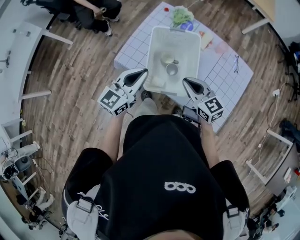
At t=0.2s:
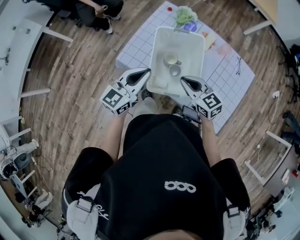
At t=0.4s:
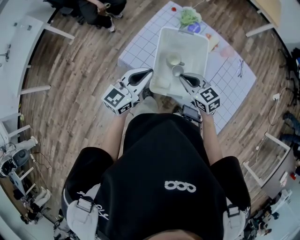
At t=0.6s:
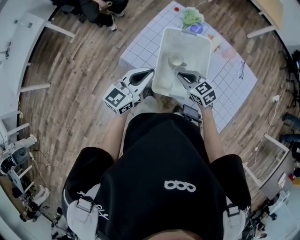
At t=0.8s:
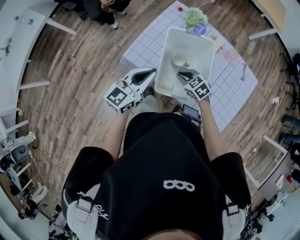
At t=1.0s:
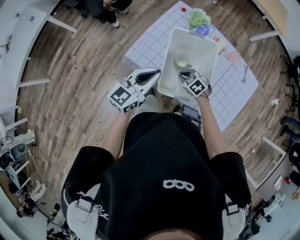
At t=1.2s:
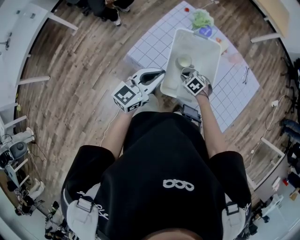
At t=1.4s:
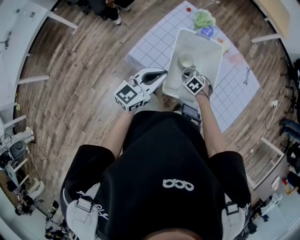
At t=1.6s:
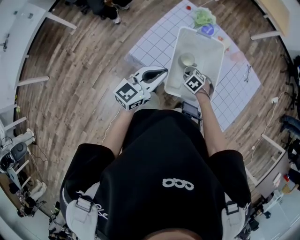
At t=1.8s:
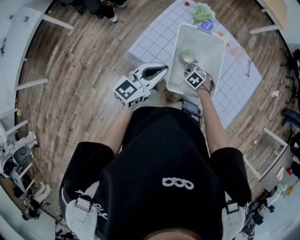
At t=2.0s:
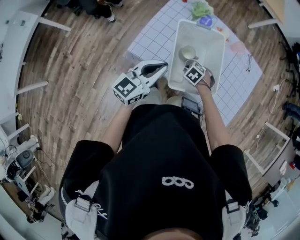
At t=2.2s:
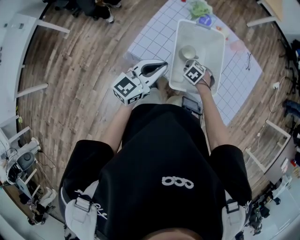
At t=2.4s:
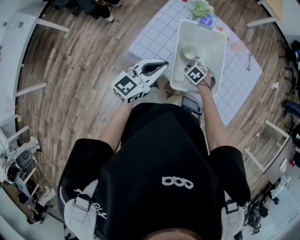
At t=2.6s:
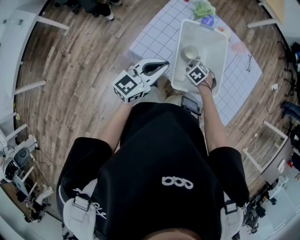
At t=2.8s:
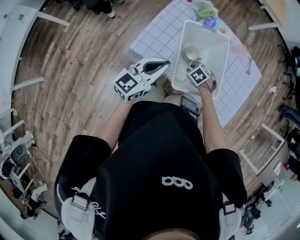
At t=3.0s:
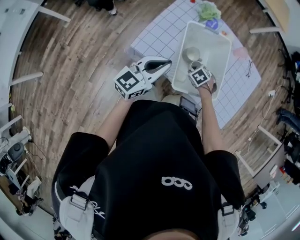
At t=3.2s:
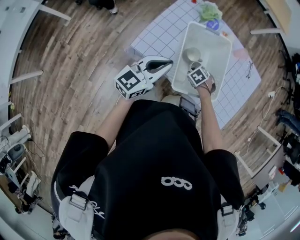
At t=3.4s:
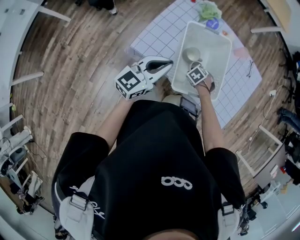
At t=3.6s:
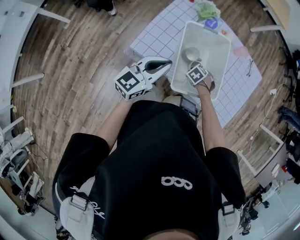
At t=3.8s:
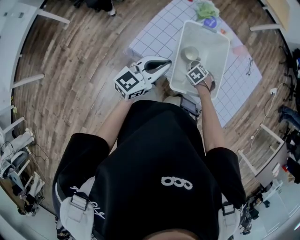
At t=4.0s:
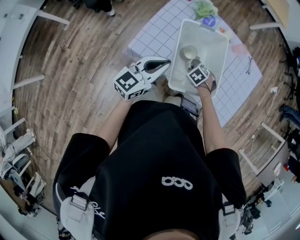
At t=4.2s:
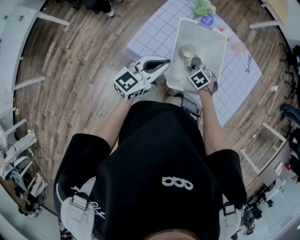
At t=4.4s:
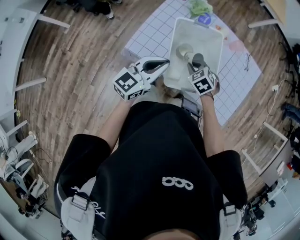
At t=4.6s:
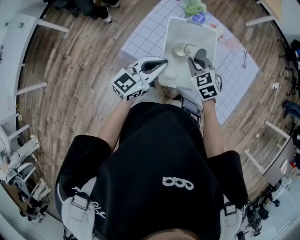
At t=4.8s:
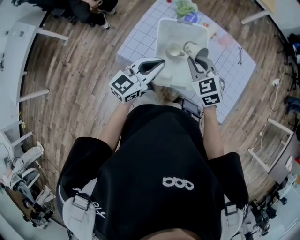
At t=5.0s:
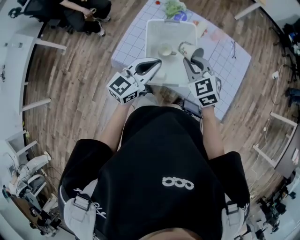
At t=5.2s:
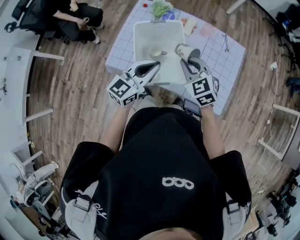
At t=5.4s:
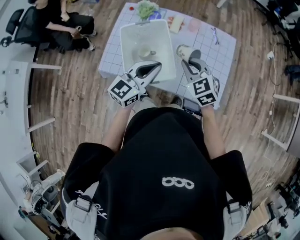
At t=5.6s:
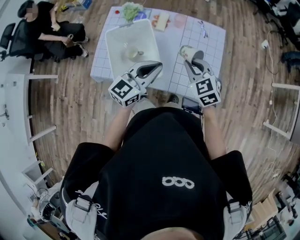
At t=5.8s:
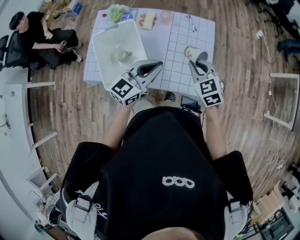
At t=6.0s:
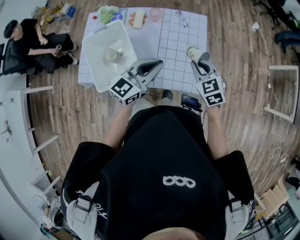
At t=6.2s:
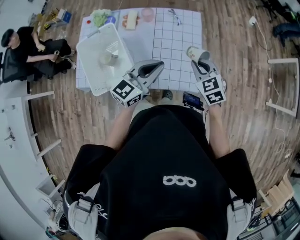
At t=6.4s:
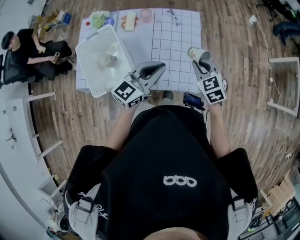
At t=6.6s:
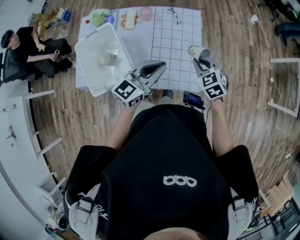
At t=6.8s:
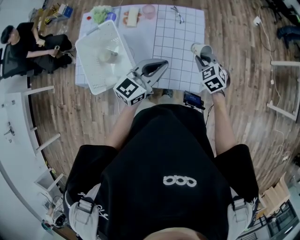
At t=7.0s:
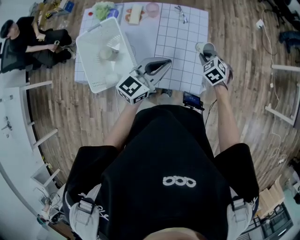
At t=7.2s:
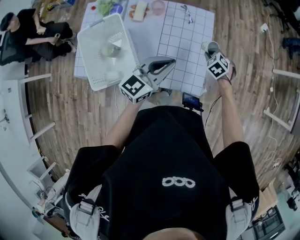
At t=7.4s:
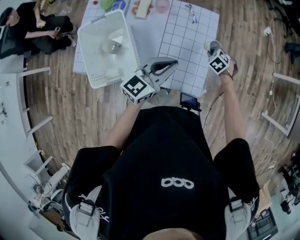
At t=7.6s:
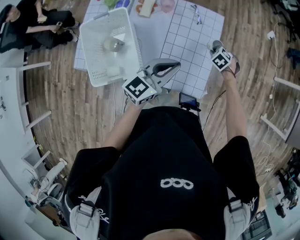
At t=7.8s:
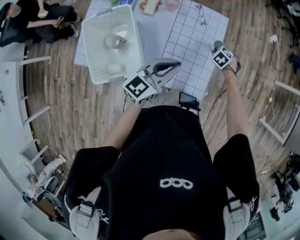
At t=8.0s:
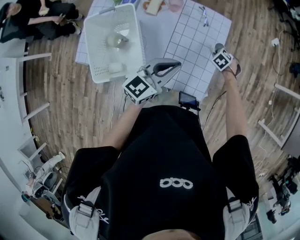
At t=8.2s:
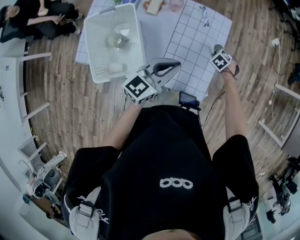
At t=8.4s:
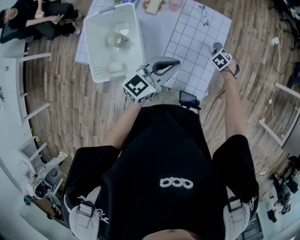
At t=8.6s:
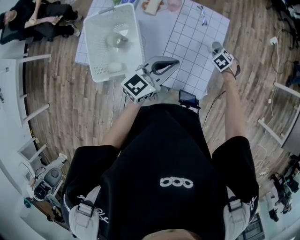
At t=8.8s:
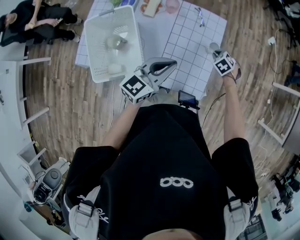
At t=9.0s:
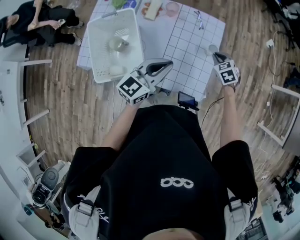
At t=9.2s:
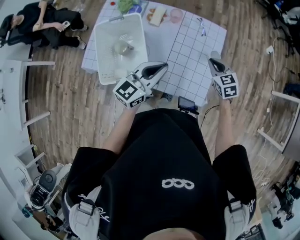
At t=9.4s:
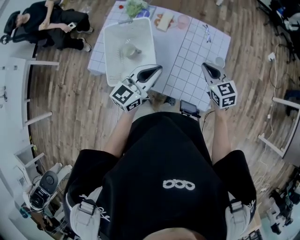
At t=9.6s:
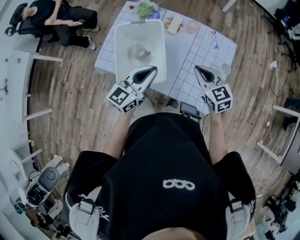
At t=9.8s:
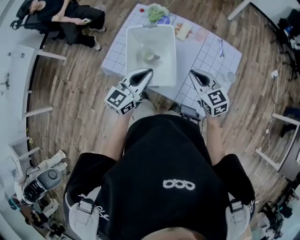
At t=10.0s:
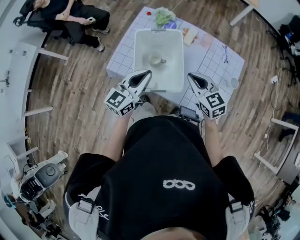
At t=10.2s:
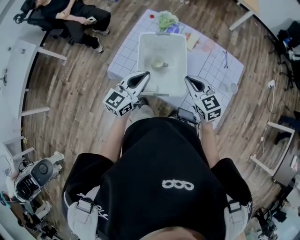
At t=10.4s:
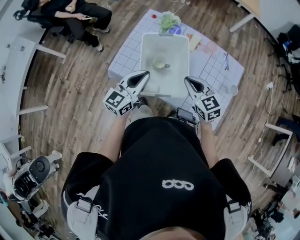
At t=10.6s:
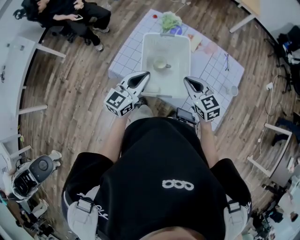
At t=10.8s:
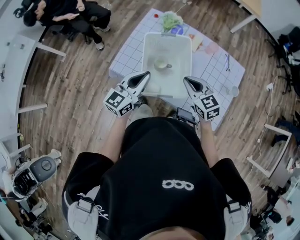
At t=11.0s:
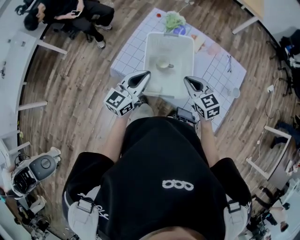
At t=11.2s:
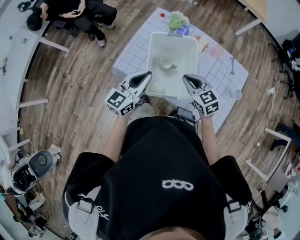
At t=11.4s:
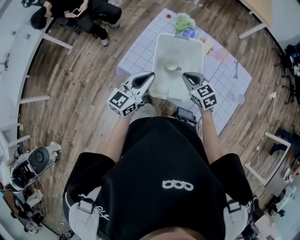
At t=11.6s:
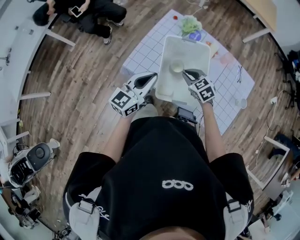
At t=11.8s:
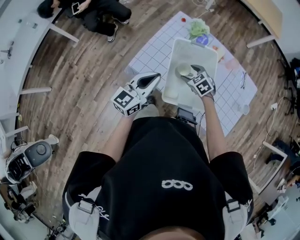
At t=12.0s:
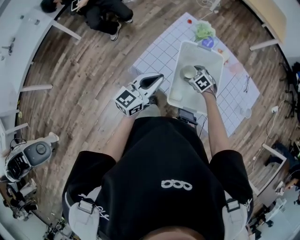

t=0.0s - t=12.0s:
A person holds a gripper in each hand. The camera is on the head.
t=0.0s - t=1.6s: The left gripper changes place by roughly 5 cm. Meanwhile the right gripper shifts some 25 cm downward, and tilts its fingers about 60 degrees downward.
t=1.6s - t=3.0s: There are only small adjustments of the grippers.
t=3.0s - t=4.4s: The right gripper travels upward by roughly 10 cm, and turns by roughly 20 degrees.
t=4.4s - t=6.0s: The right gripper shifts by some 40 cm, and rotates some 40 degrees; the left gripper changes place by about 40 cm, and changes its angle by some 20 degrees.
t=6.0s - t=7.6s: The left gripper ends up roughly 10 cm from where it was, while the right gripper goes about 25 cm downward, and points its fingers roughly 40 degrees further downward.
t=7.6s - t=9.0s: The right gripper goes about 10 cm upward, and changes its angle by some 20 degrees.
t=9.0s - t=10.4s: The left gripper shifts by roughly 35 cm, and swivels approximately 20 degrees. The right gripper shifts by roughly 40 cm, and turns by some 40 degrees.
t=10.4s - t=12.0s: The right gripper shifts about 30 cm downward, forward and to the left, angles its fingers downward, by about 40 degrees, and opens up. The left gripper goes about 10 cm to the left.

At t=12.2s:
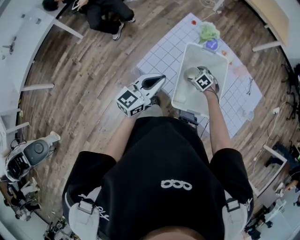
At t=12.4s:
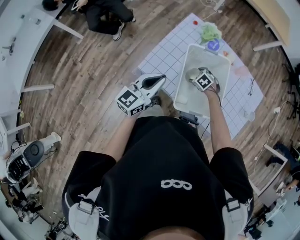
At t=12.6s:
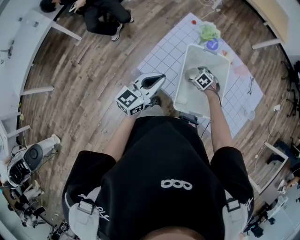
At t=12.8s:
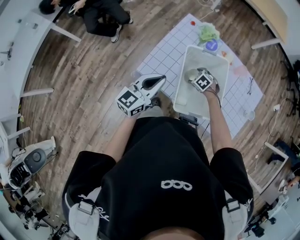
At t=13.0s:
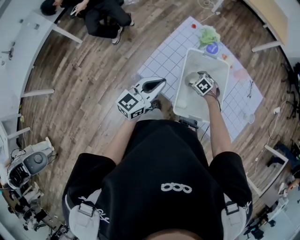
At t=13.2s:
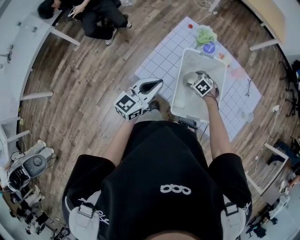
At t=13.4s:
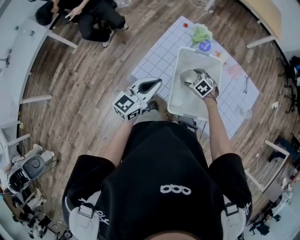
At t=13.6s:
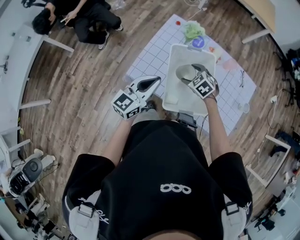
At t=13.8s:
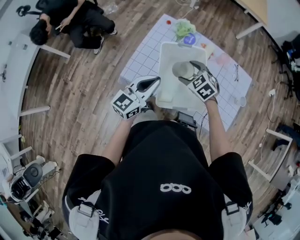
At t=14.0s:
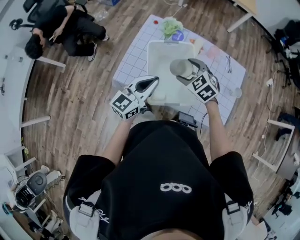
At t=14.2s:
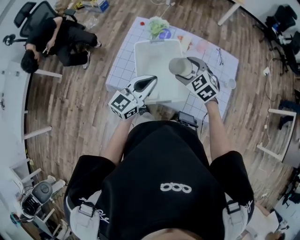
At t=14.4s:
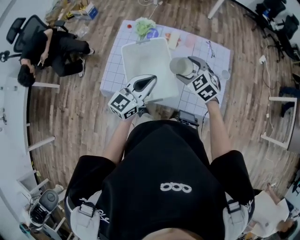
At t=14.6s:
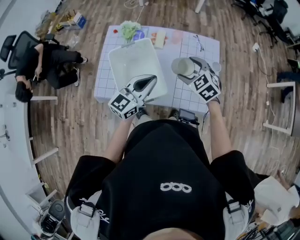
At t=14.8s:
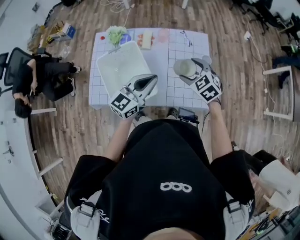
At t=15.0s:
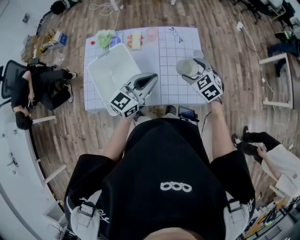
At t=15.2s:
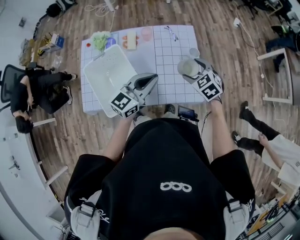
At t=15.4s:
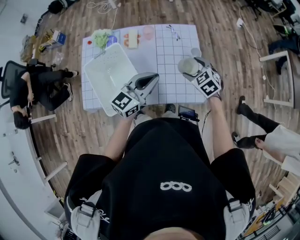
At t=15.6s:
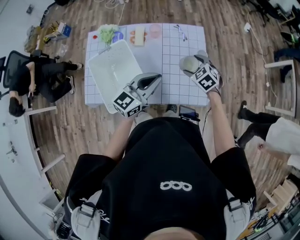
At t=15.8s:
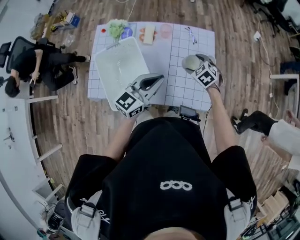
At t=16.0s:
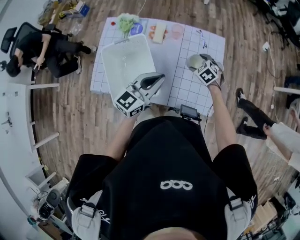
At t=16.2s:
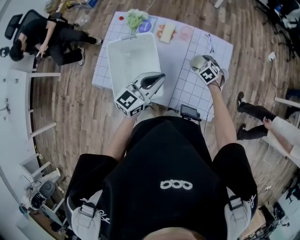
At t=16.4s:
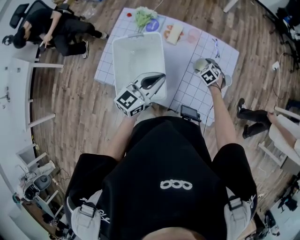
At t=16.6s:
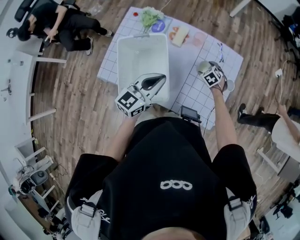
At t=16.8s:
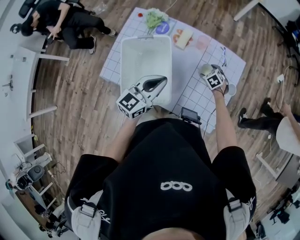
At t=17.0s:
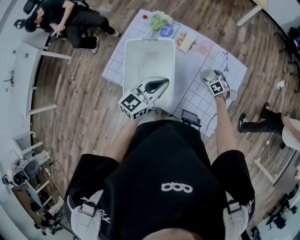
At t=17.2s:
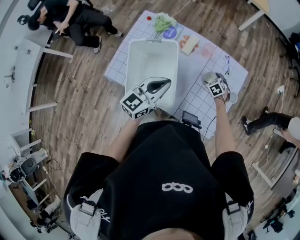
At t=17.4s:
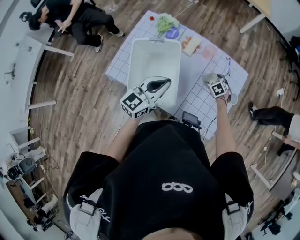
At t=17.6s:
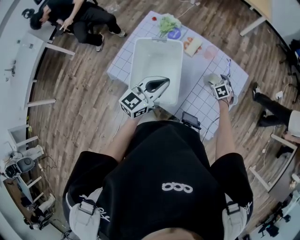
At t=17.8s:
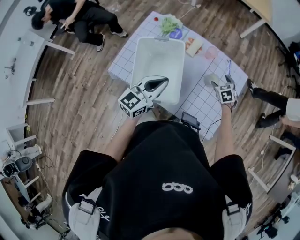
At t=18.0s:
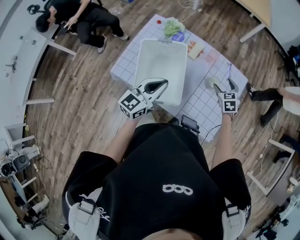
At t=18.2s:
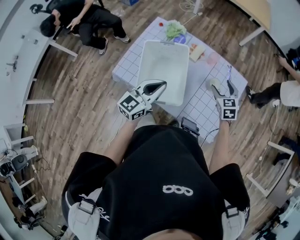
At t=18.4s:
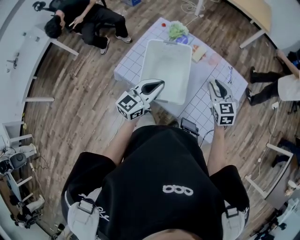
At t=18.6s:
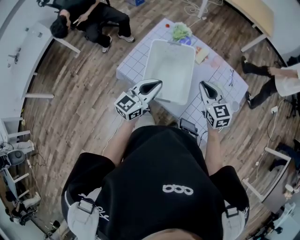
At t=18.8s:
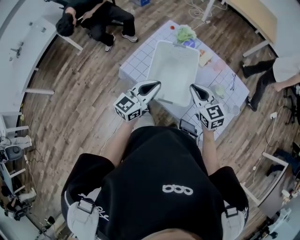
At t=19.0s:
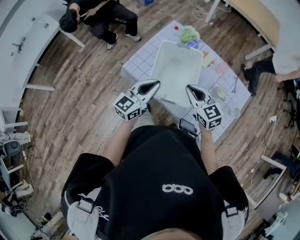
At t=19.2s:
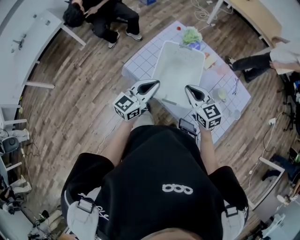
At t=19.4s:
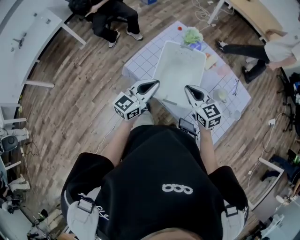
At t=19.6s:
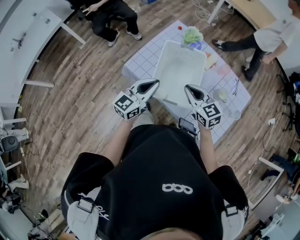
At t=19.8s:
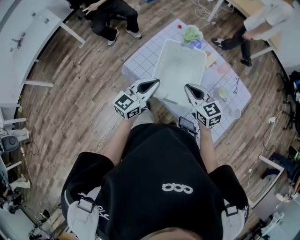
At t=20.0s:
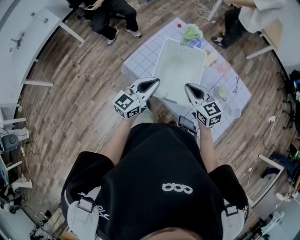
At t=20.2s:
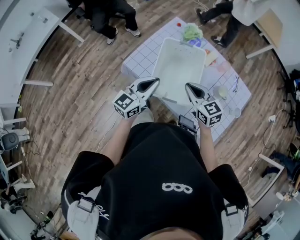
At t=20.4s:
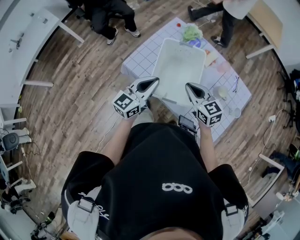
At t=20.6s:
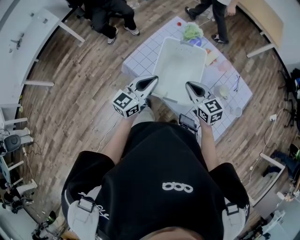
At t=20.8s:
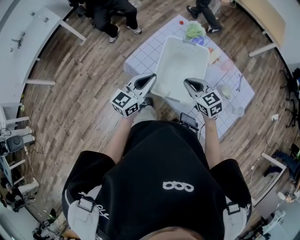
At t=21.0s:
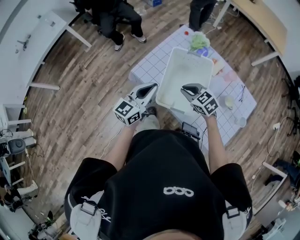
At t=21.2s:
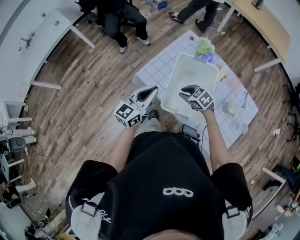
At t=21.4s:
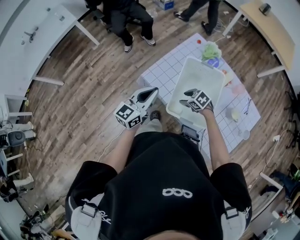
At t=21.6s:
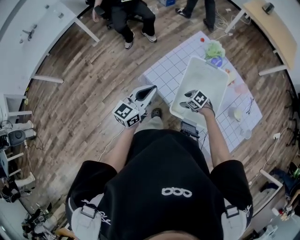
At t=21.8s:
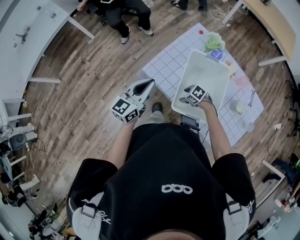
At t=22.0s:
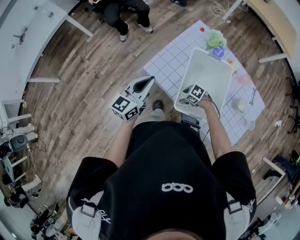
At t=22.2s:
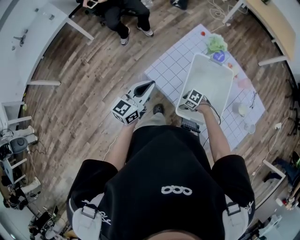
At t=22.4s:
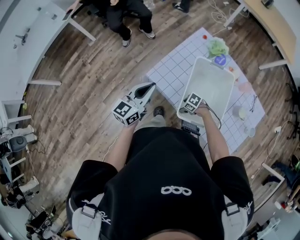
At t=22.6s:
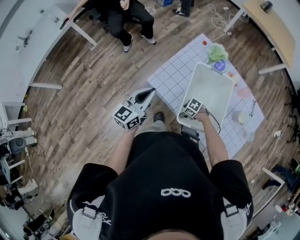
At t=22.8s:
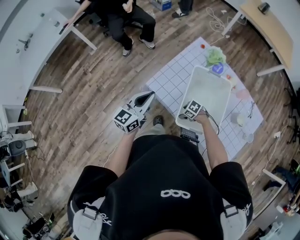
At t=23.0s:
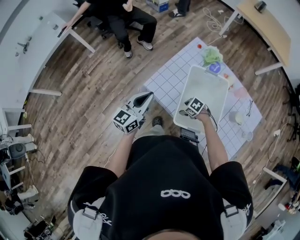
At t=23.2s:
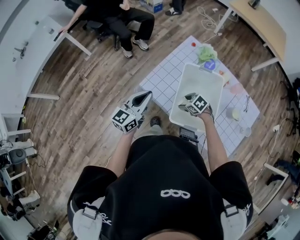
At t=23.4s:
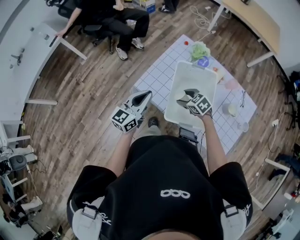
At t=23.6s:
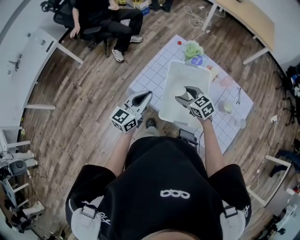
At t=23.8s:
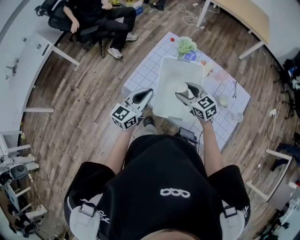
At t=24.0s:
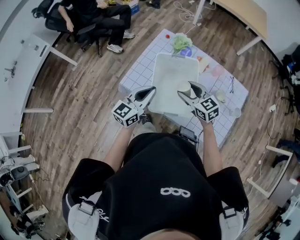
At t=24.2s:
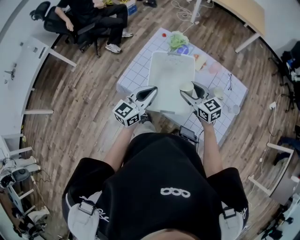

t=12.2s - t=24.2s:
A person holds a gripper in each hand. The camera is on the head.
t=12.2s - t=13.8s: The left gripper ends up about 5 cm from where it was, while the right gripper heads upward, covering approximately 20 cm, and rotates about 20 degrees.
t=13.8s - t=15.2s: The right gripper changes place by approximately 40 cm, and rotates approximately 40 degrees, while the left gripper ends up about 35 cm from where it was, and rotates roughly 30 degrees.
t=15.2s - t=16.6s: The right gripper travels downward and forward by about 30 cm, and changes its angle by about 20 degrees, while the left gripper travels to the left by some 10 cm, and changes its angle by about 30 degrees.
t=16.6s - t=18.2s: The right gripper shifts roughly 20 cm upward, and rotates roughly 30 degrees. The left gripper heads to the left and backward, covering approximately 10 cm.
t=18.2s - t=19.8s: The right gripper ends up roughly 25 cm from where it was, changes its angle by about 40 degrees, and closes up, while the left gripper ends up some 10 cm from where it was.
t=19.8s - t=21.2s: The left gripper heads to the left, covering some 5 cm. Meanwhile the right gripper goes roughly 15 cm downward, to the left and forward, and rotates roughly 40 degrees.
t=21.2s - t=22.6s: The left gripper moves some 10 cm. The right gripper travels downward by approximately 20 cm, swivels approximately 30 degrees, and opens.
t=22.6s - t=24.2s: The left gripper ends up about 20 cm from where it was; the right gripper is displaced upward by some 30 cm, and tips its fingers upward by some 40 degrees.
